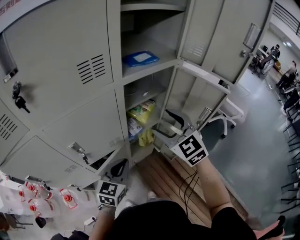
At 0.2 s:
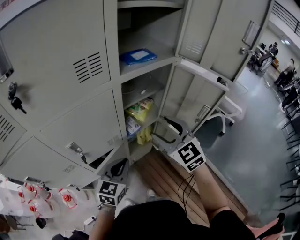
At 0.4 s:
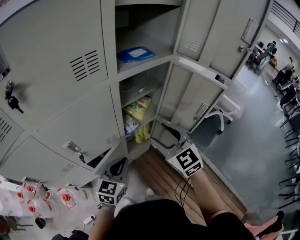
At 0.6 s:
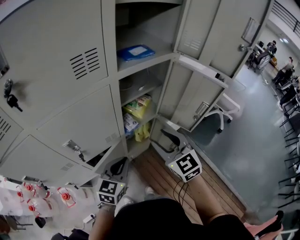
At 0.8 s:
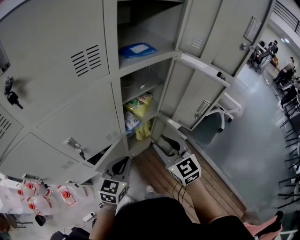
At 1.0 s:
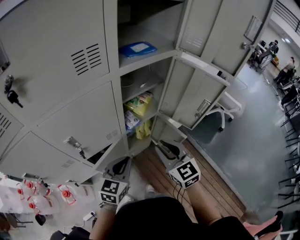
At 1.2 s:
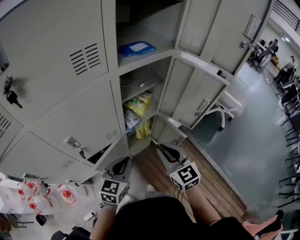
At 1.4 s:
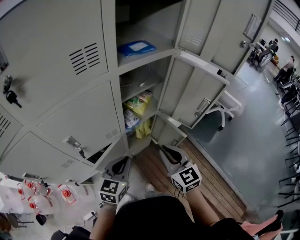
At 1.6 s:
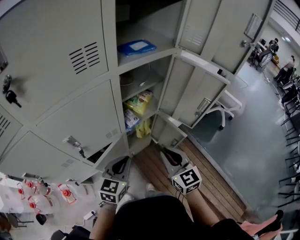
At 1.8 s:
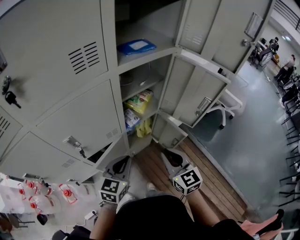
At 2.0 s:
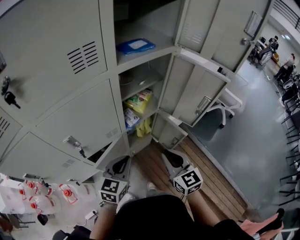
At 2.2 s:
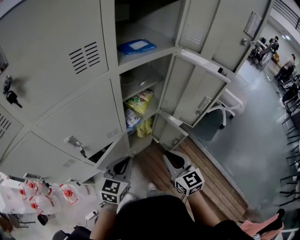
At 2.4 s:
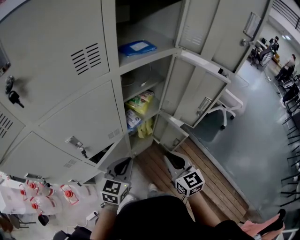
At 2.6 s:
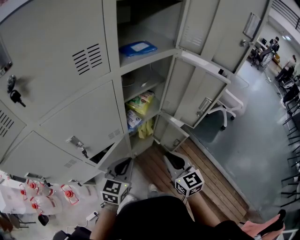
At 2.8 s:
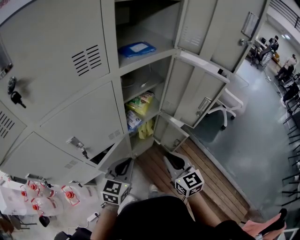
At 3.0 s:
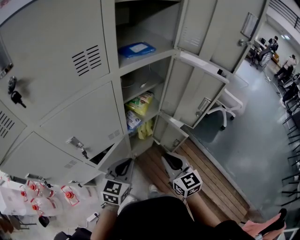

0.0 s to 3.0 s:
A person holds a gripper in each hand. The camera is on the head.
0.0 to 1.6 s: The right gripper moves downward and backward, about 15 cm, swivels some 30 degrees, and closes up.
1.6 to 3.0 s: There are only small adjustments of the grippers.

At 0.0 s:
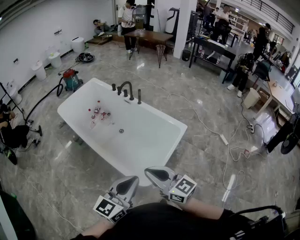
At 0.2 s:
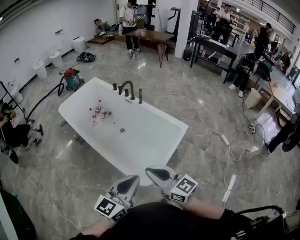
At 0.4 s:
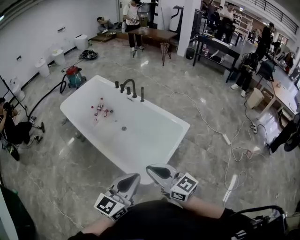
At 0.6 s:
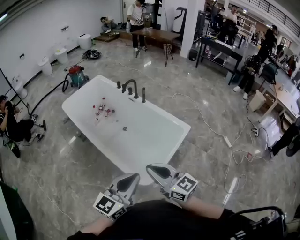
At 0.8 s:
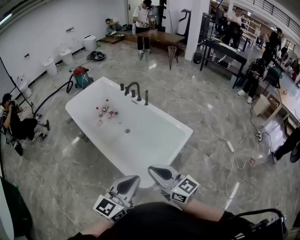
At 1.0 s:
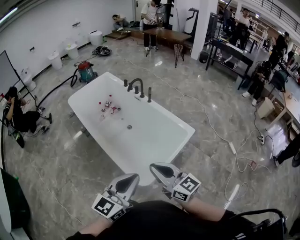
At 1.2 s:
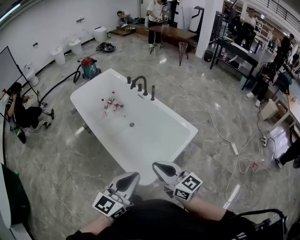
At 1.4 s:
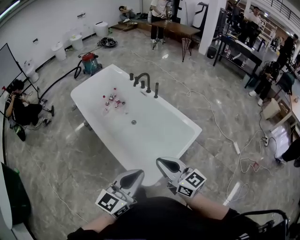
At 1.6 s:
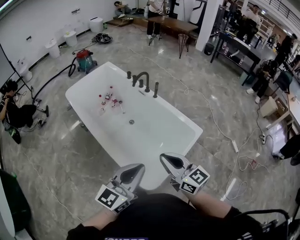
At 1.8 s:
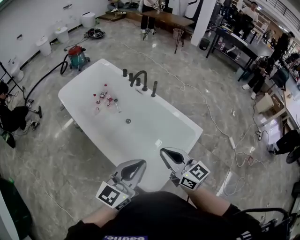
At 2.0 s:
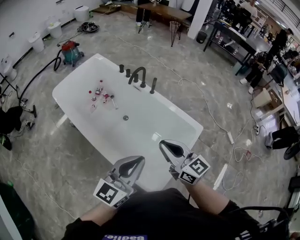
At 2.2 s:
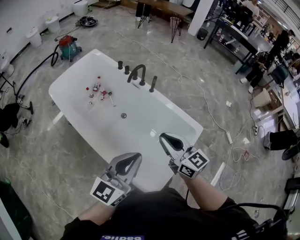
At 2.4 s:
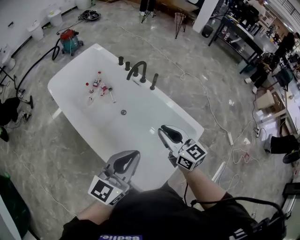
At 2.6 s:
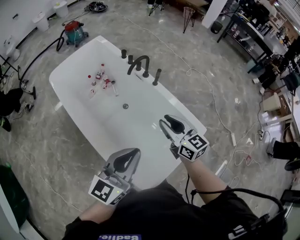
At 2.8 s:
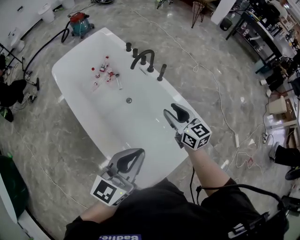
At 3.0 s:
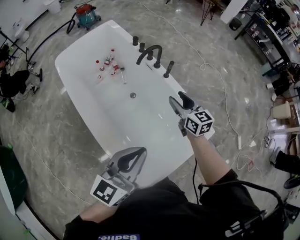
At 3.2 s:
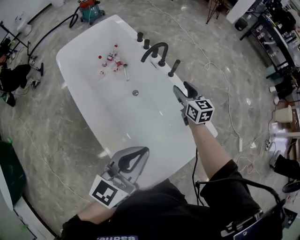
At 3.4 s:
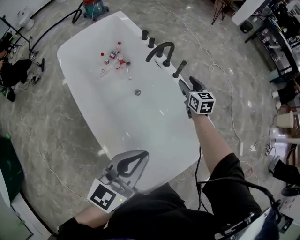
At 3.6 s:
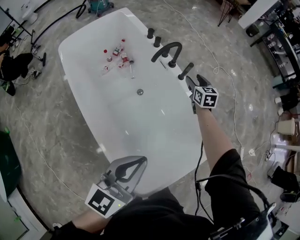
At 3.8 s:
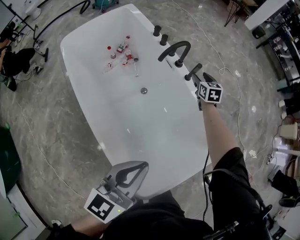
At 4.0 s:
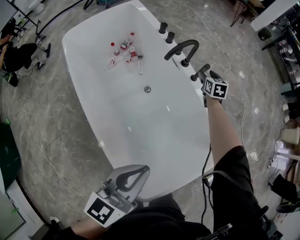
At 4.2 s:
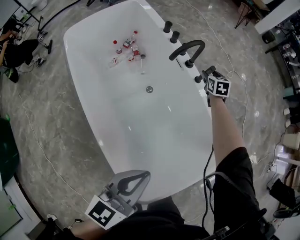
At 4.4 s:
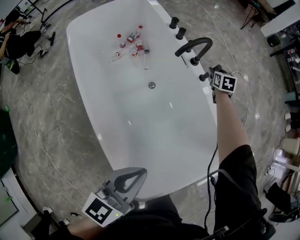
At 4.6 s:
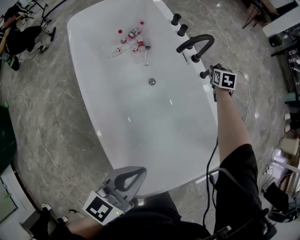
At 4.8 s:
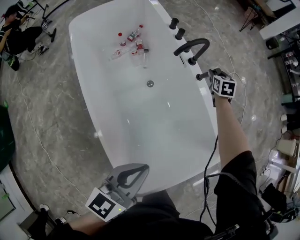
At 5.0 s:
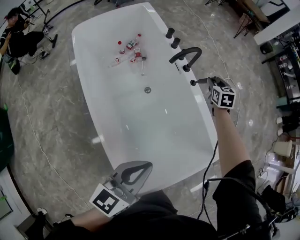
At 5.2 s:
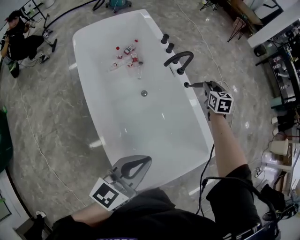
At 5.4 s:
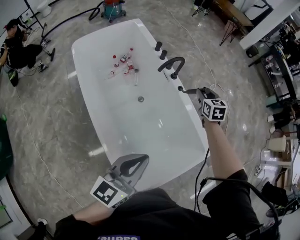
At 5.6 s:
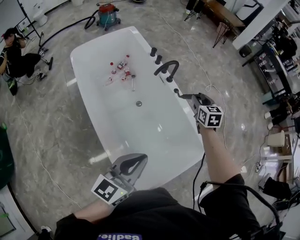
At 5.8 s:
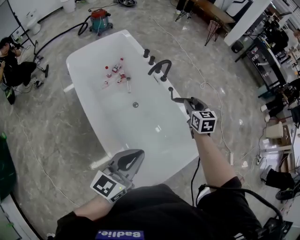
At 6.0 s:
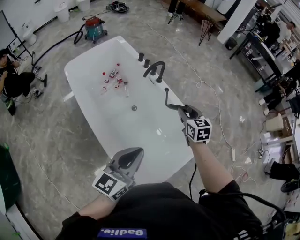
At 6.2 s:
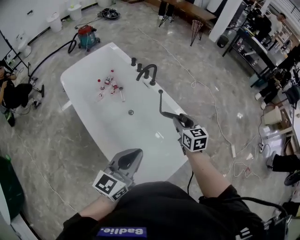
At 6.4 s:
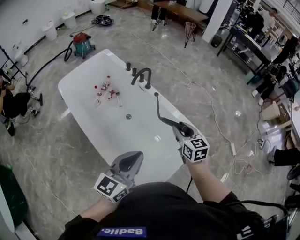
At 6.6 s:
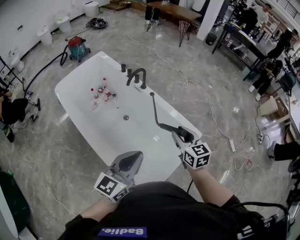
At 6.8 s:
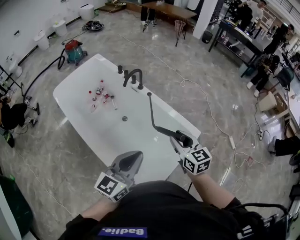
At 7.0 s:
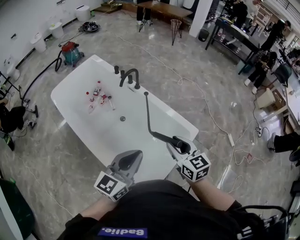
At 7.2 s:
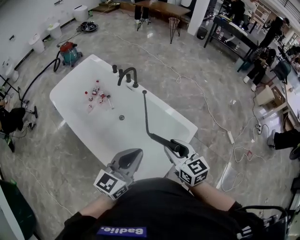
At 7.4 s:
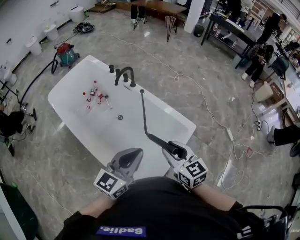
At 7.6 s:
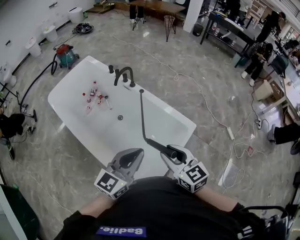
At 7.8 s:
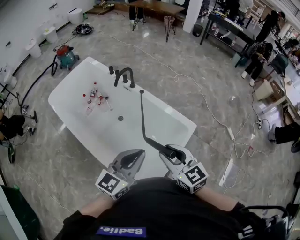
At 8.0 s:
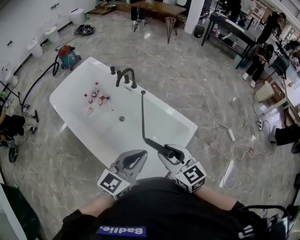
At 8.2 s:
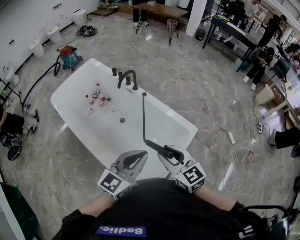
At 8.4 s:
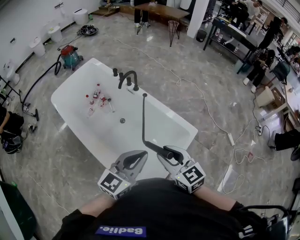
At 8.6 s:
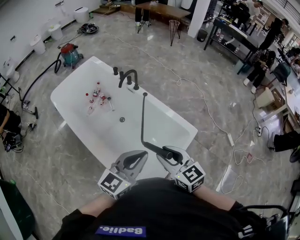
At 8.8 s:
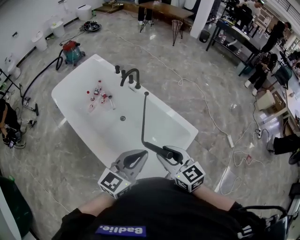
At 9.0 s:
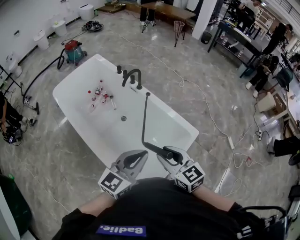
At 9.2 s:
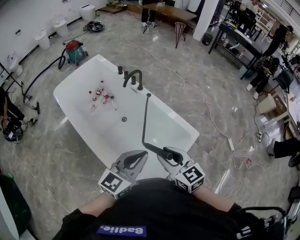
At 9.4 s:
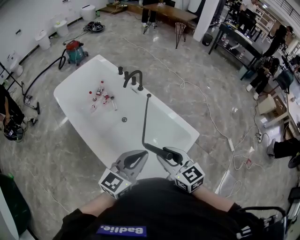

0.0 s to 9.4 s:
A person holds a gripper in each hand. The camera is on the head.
0.0 to 1.6 s: The grippers both shift forward by approximately 15 cm.
1.6 to 3.2 s: The right gripper shifts about 60 cm forward and downward, turns by approximately 20 degrees, and opens, while the left gripper moves forward, roughly 30 cm.
3.2 to 4.8 s: The right gripper is displaced forward and downward by approximately 25 cm, and rotates some 30 degrees. Meanwhile the left gripper is displaced downward by roughly 15 cm.
4.8 to 6.2 s: The left gripper heads upward and backward, covering some 20 cm; the right gripper travels backward and upward by roughly 50 cm.
6.2 to 7.8 s: The left gripper is displaced to the right by about 10 cm. The right gripper goes some 25 cm backward and upward.
7.8 to 9.4 s: The grippers move only a little.

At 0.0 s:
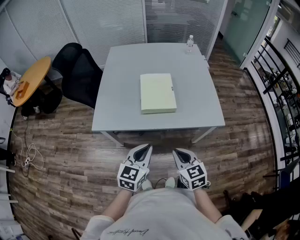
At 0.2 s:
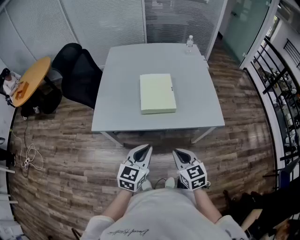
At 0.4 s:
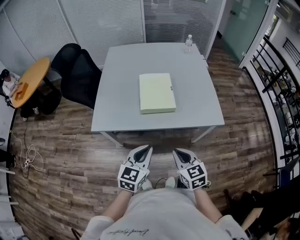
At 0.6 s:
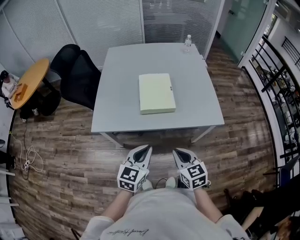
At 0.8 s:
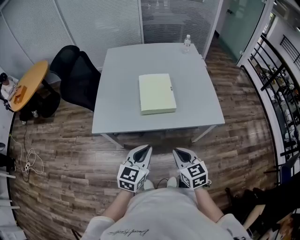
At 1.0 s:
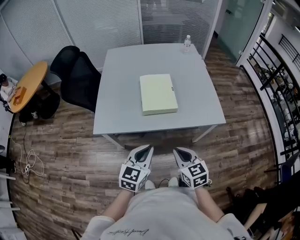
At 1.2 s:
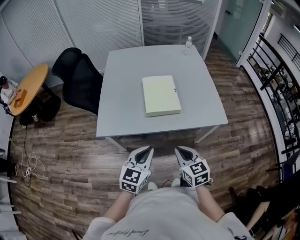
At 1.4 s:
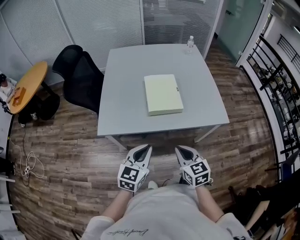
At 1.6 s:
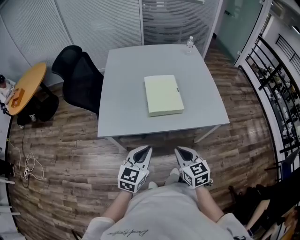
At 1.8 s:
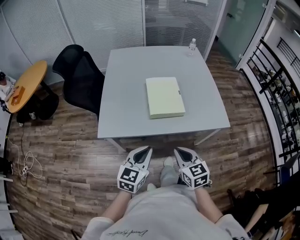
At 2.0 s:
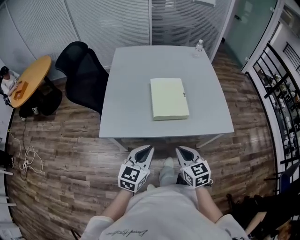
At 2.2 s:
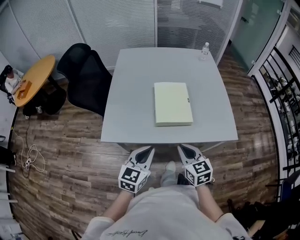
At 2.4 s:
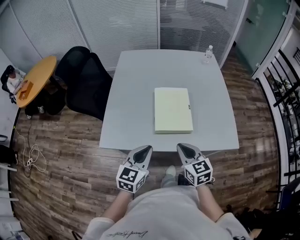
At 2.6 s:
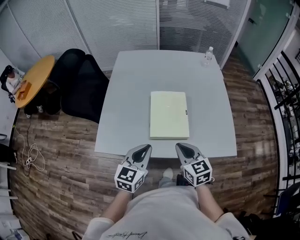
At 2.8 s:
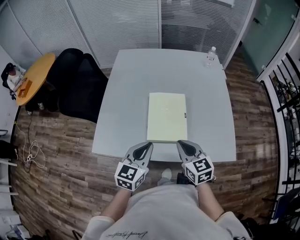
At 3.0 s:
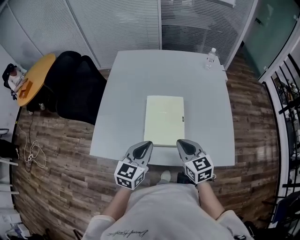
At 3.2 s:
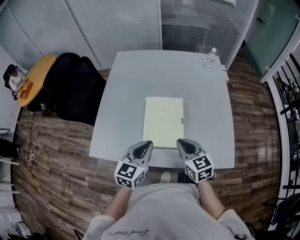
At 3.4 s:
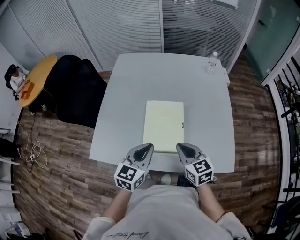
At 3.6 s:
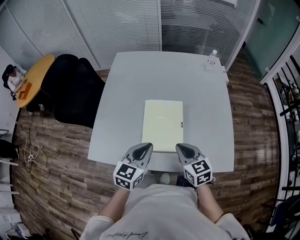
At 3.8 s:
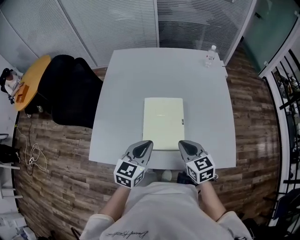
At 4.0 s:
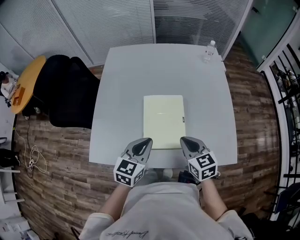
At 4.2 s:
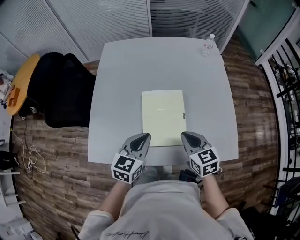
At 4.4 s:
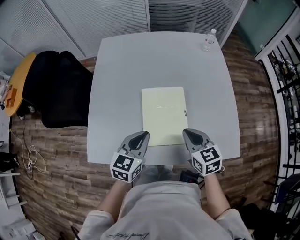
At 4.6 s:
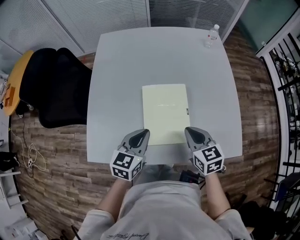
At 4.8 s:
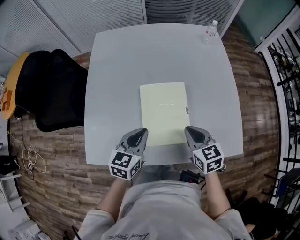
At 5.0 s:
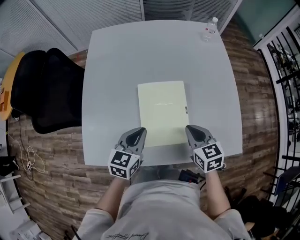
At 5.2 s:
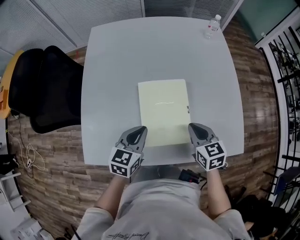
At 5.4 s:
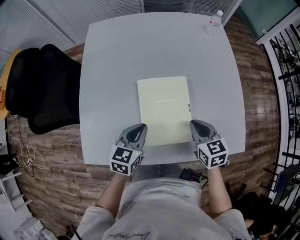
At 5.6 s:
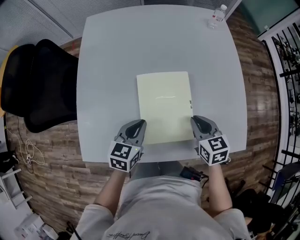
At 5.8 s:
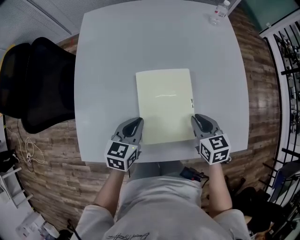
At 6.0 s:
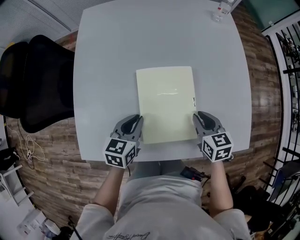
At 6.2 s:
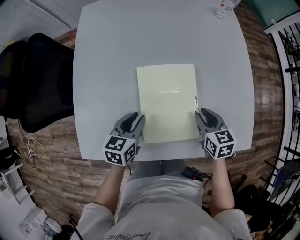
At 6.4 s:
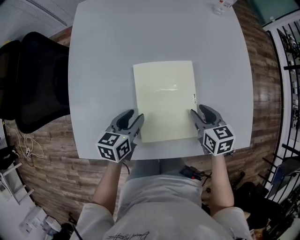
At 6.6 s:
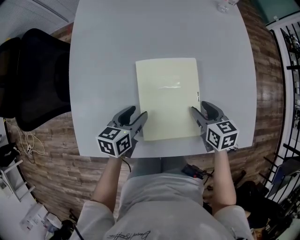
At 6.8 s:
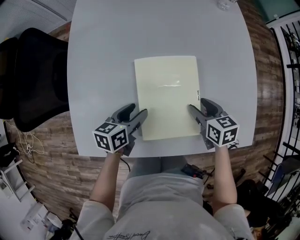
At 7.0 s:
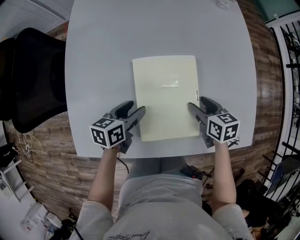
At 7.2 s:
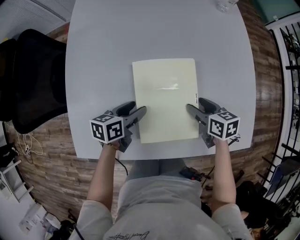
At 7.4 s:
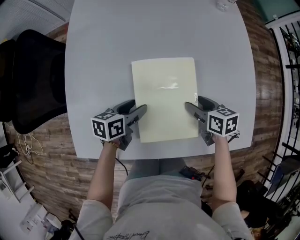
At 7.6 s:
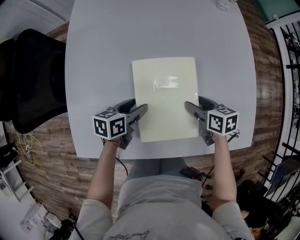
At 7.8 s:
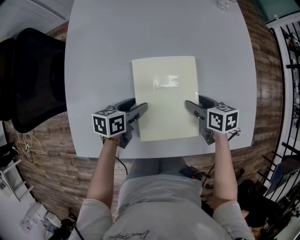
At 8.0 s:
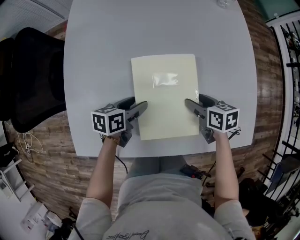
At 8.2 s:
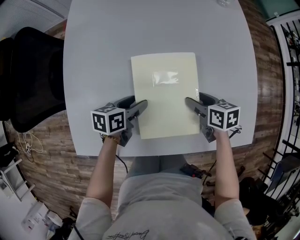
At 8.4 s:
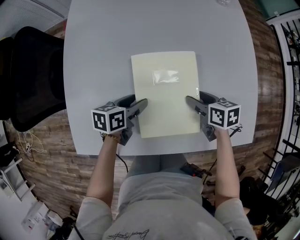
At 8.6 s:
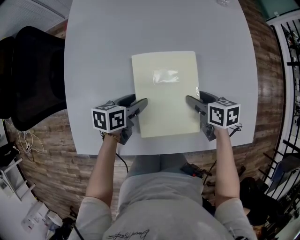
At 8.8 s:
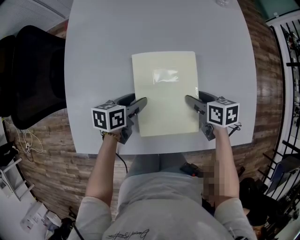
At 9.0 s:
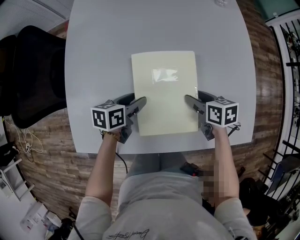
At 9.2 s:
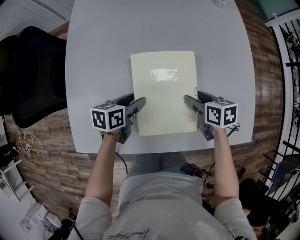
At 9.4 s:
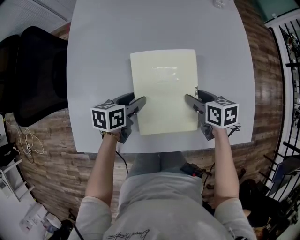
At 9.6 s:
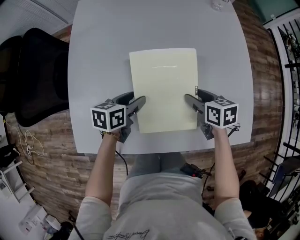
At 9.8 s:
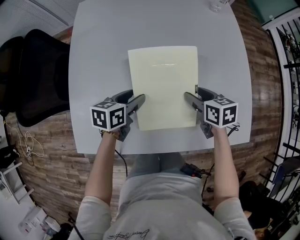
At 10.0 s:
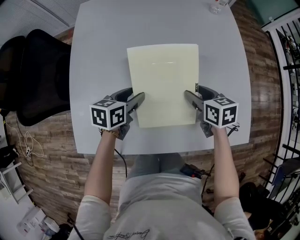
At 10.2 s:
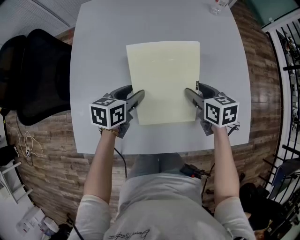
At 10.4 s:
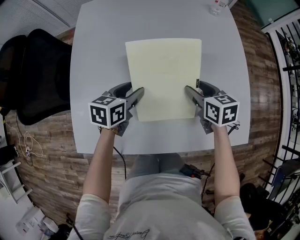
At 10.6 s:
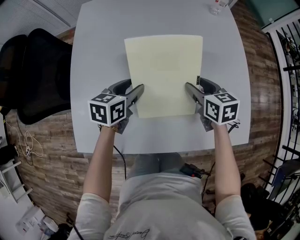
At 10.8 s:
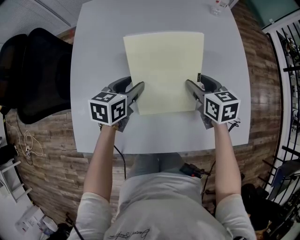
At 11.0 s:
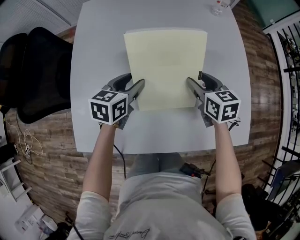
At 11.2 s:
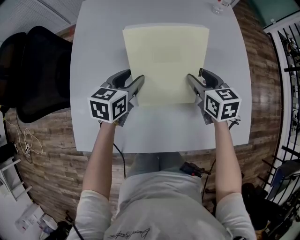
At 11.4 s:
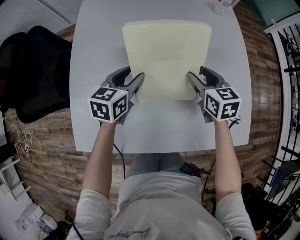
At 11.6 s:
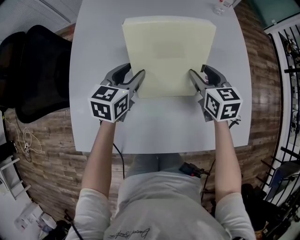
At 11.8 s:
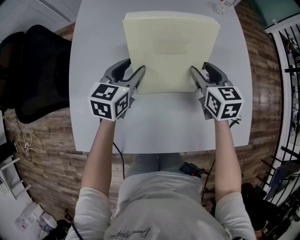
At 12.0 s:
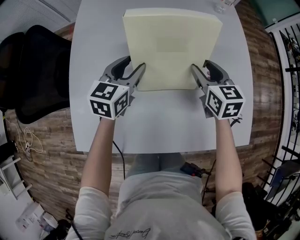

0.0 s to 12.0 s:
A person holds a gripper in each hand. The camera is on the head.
0.0 to 1.6 s: The two grippers go some 5 cm to the left.
1.6 to 3.0 s: The two grippers go about 20 cm forward.
3.0 to 4.4 s: The left gripper goes approximately 5 cm forward. Meanwhile the right gripper changes place by roughly 5 cm.
4.4 to 6.0 s: The two grippers go about 10 cm downward.
6.0 to 7.6 s: The two grippers go some 5 cm downward. The left gripper rotates roughly 30 degrees, and opens; the right gripper rotates some 20 degrees, and opens up.
7.6 to 9.0 s: Neither gripper changes place.
9.0 to 10.4 s: Both grippers move upward, about 5 cm.
10.4 to 12.0 s: The left gripper shifts some 10 cm forward and upward, and rotates roughly 20 degrees, while the right gripper shifts about 5 cm forward.
